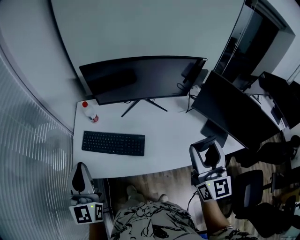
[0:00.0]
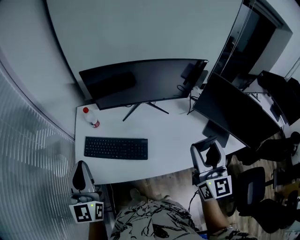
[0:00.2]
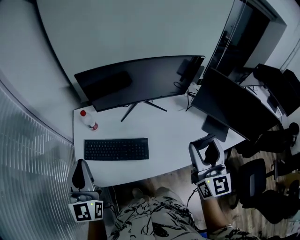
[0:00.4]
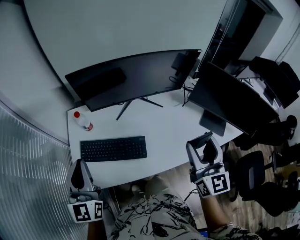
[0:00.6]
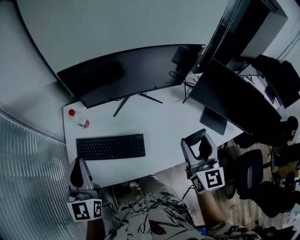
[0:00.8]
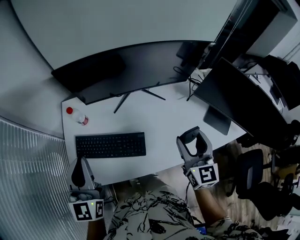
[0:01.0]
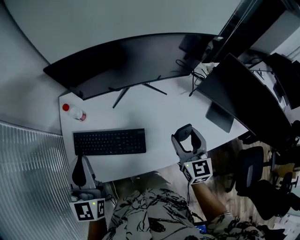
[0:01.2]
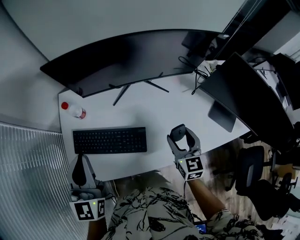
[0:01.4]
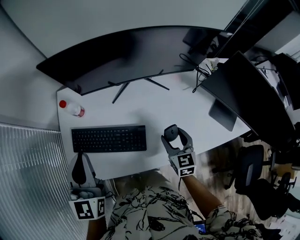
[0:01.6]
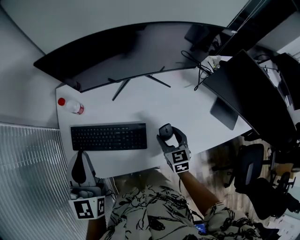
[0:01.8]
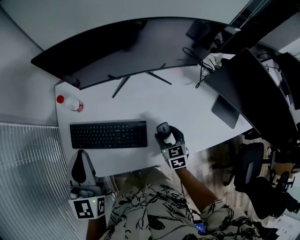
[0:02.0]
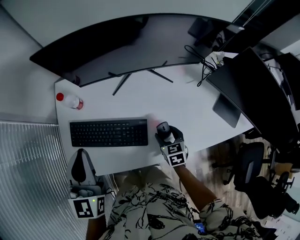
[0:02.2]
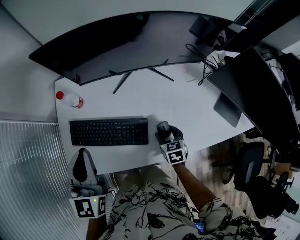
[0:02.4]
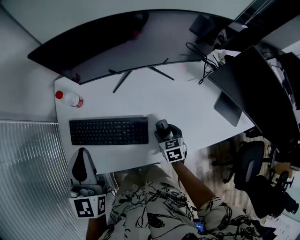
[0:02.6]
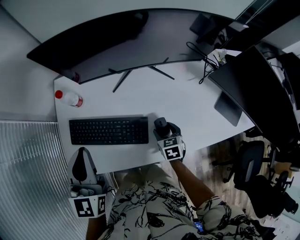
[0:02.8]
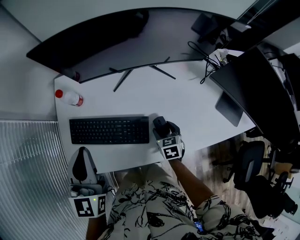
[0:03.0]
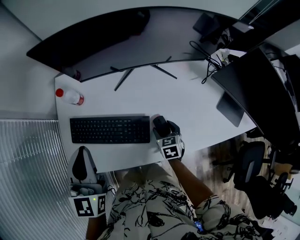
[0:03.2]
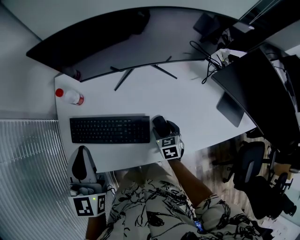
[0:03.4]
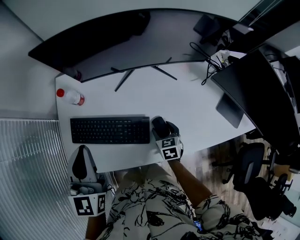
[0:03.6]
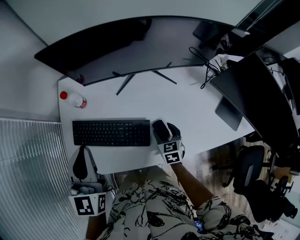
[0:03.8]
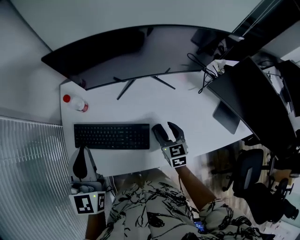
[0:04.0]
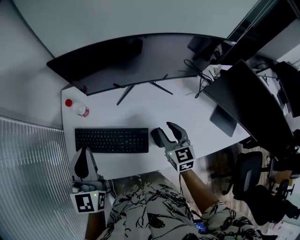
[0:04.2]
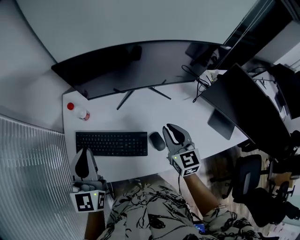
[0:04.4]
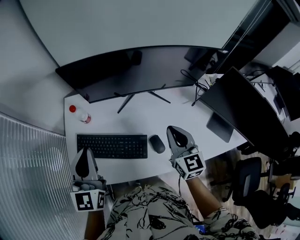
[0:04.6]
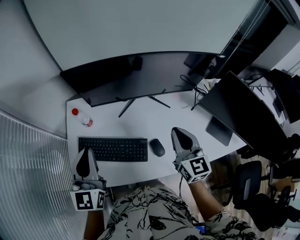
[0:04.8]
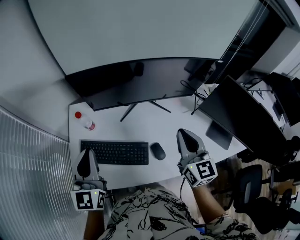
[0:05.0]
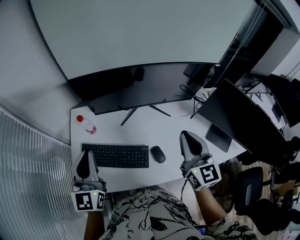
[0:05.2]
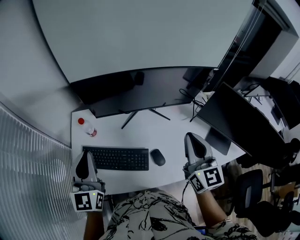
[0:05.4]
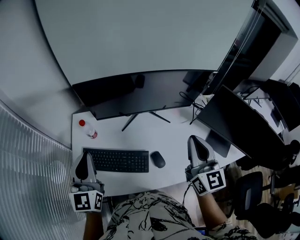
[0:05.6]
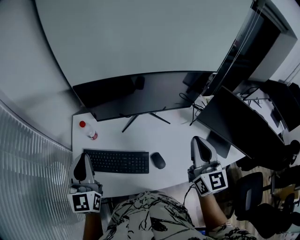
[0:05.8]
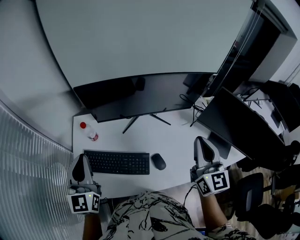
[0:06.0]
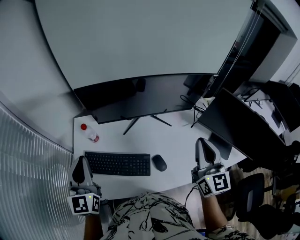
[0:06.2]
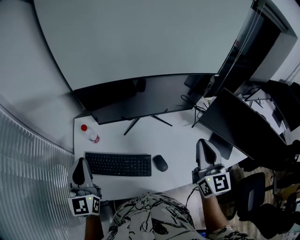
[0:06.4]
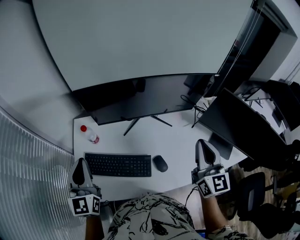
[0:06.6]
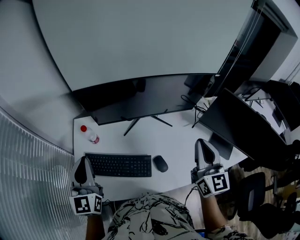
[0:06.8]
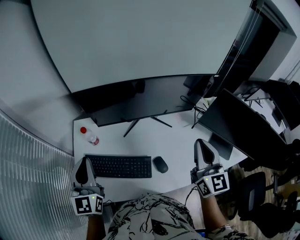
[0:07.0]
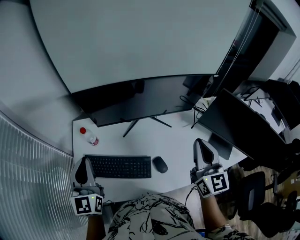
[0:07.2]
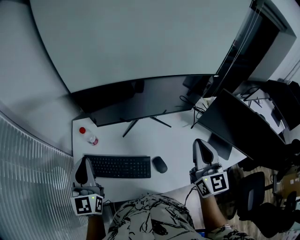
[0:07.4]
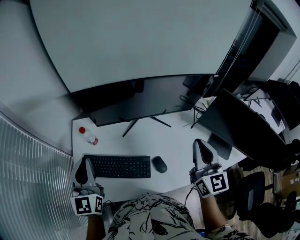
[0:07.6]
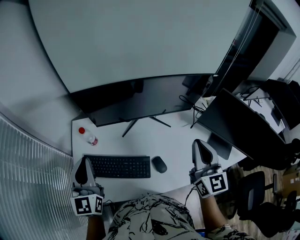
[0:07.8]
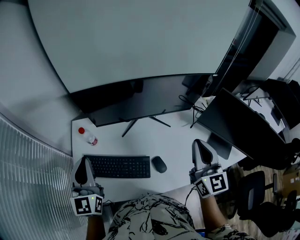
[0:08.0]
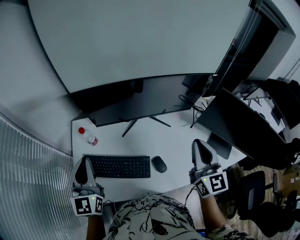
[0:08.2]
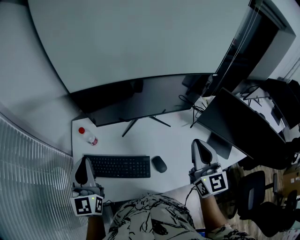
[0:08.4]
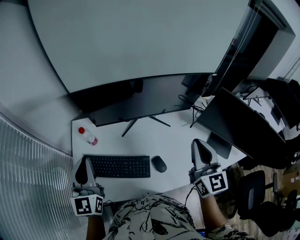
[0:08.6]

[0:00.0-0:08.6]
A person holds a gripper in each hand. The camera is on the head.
0:00.0 to 0:01.4: The right gripper shifts approximately 30 cm downward and forward, and tips its fingers downward by some 30 degrees. The left gripper shifts approximately 15 cm forward and downward.
0:01.4 to 0:02.8: The right gripper travels downward by approximately 20 cm, and swivels some 30 degrees.
0:02.8 to 0:04.4: The right gripper is displaced upward by about 20 cm, tilts its fingers some 30 degrees upward, and closes its fingers.
0:04.4 to 0:05.8: The left gripper ends up some 5 cm from where it was; the right gripper heads upward and to the right, covering about 20 cm, and rotates about 20 degrees.
0:05.8 to 0:07.2: The grippers stay close to where they were, moving slightly.
0:07.2 to 0:08.6: Neither gripper changes place.

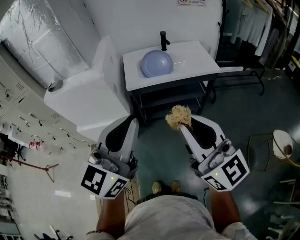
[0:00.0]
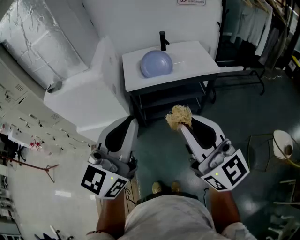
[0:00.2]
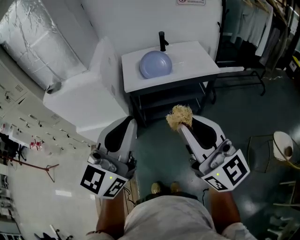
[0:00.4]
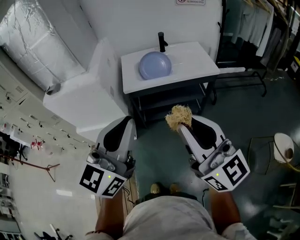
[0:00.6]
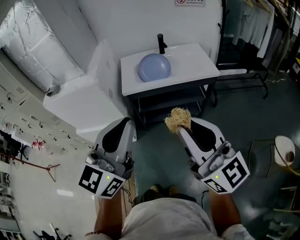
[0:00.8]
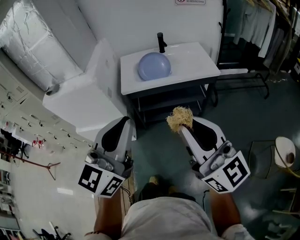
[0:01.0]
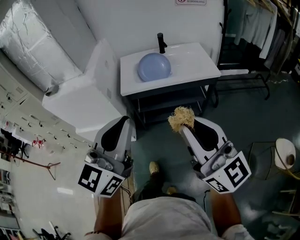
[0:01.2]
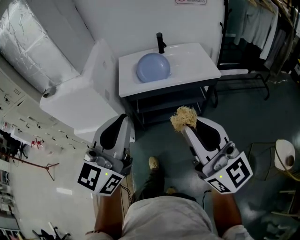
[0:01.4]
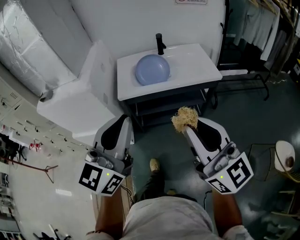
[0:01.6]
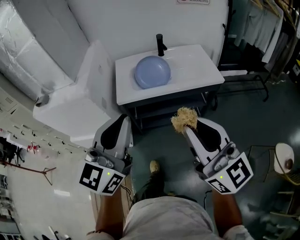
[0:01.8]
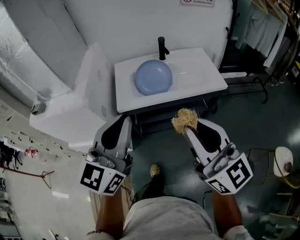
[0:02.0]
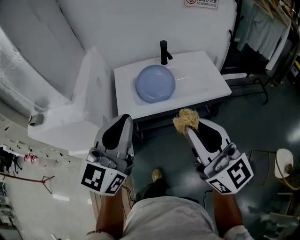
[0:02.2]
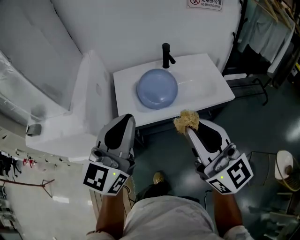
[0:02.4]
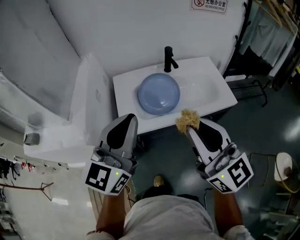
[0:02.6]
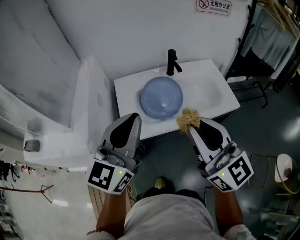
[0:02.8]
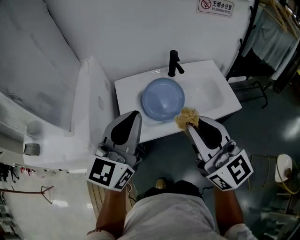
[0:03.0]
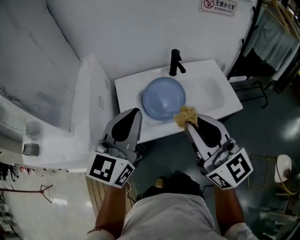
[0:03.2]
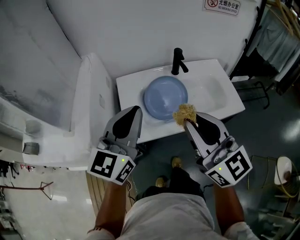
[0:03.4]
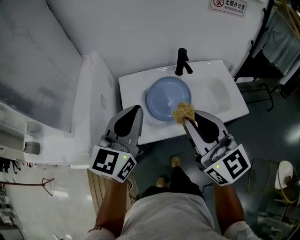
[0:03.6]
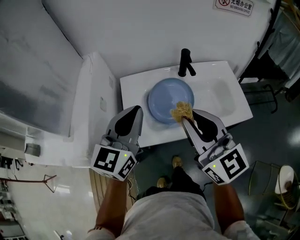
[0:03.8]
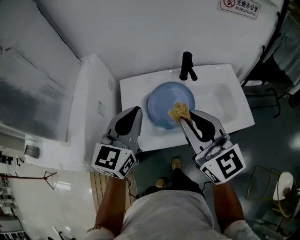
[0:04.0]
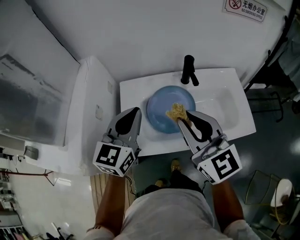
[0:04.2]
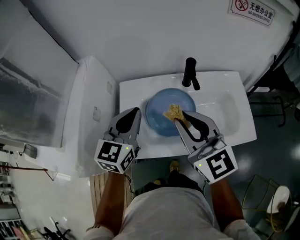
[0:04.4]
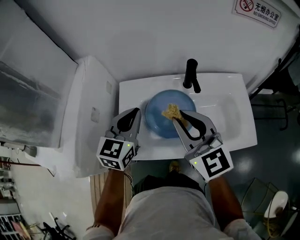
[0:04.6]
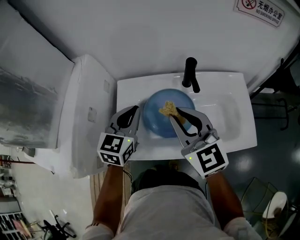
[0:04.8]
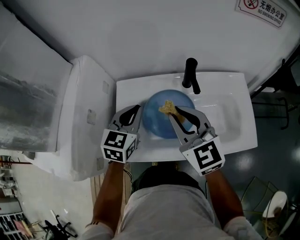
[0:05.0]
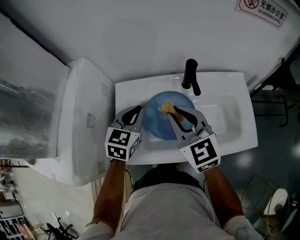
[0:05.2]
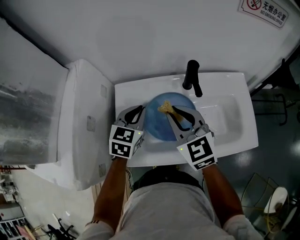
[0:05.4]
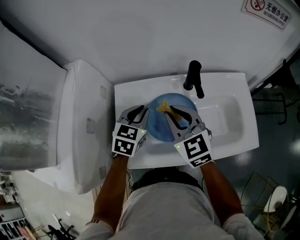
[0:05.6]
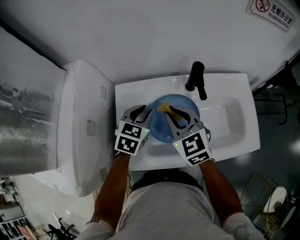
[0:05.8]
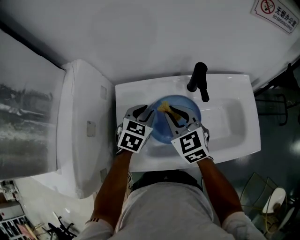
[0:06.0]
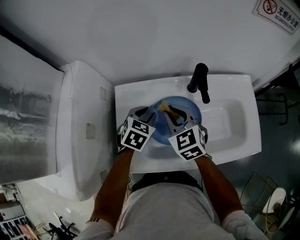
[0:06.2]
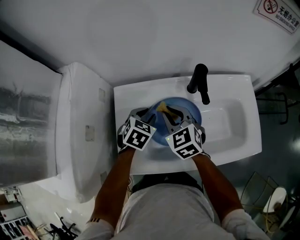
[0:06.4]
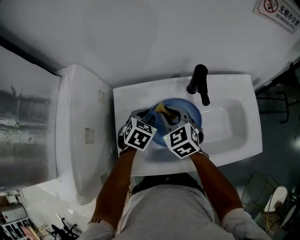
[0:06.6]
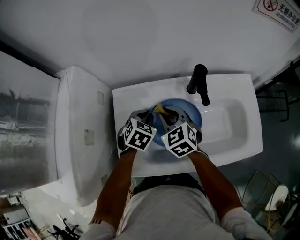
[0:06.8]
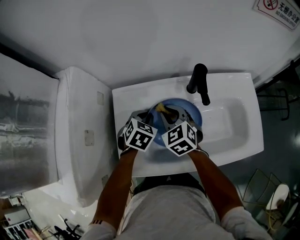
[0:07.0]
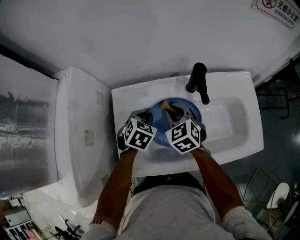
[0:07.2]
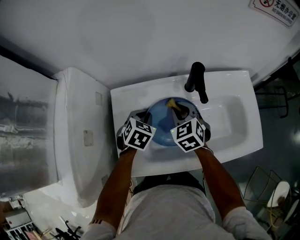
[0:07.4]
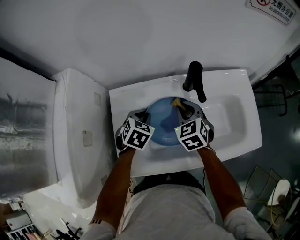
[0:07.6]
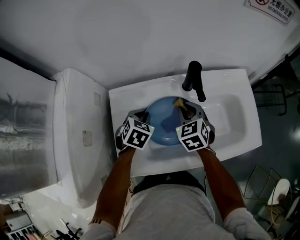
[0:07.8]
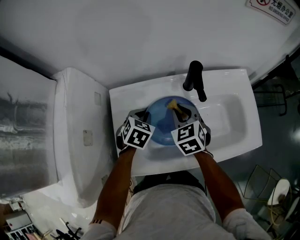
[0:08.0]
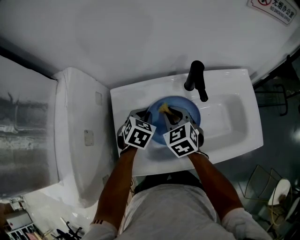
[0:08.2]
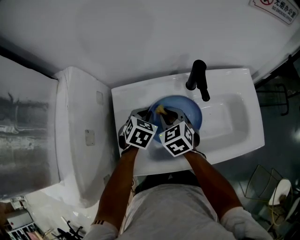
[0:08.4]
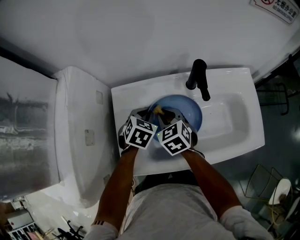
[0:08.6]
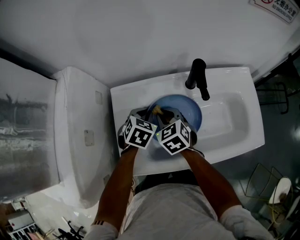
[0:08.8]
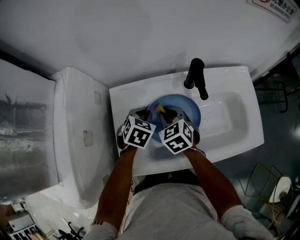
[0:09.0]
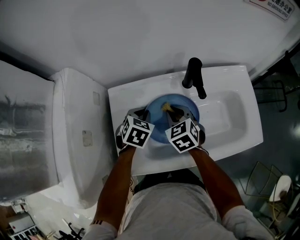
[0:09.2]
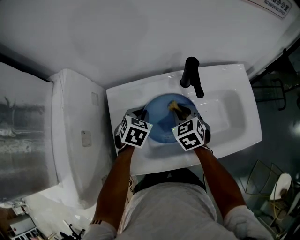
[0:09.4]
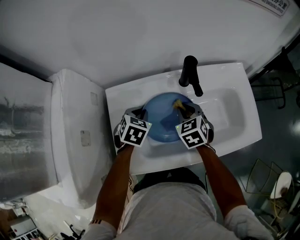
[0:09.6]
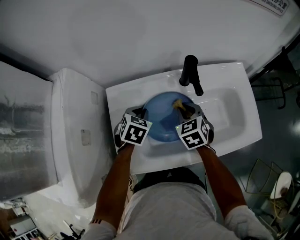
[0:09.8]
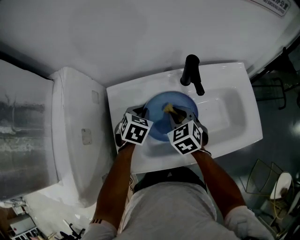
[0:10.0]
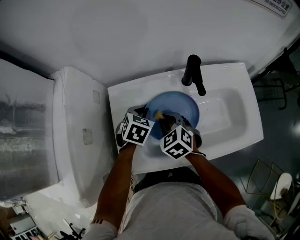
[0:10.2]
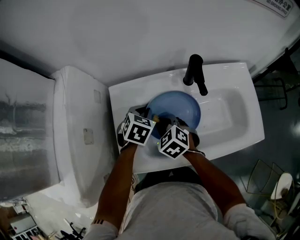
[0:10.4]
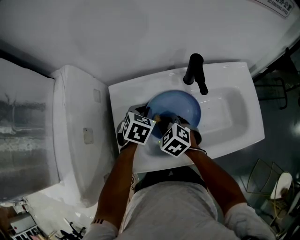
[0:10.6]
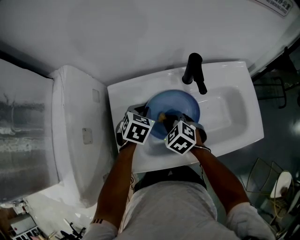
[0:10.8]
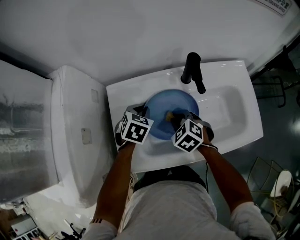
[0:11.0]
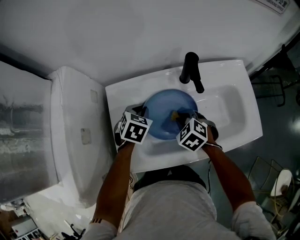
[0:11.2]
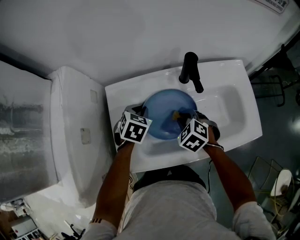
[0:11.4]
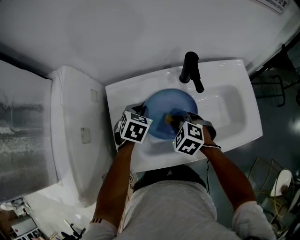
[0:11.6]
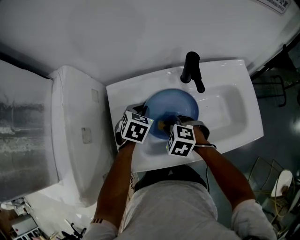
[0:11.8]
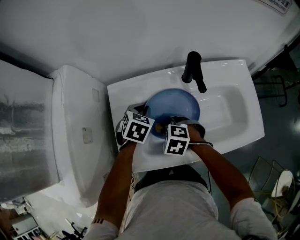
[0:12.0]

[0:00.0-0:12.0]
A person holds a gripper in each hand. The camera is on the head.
0:00.0 to 0:01.6: The left gripper is displaced forward and to the right by approximately 10 cm; the right gripper goes some 10 cm to the right and forward.
0:01.6 to 0:03.0: Both grippers move forward, some 30 cm.
0:03.0 to 0:04.4: The grippers both shift forward and downward by about 20 cm. The left gripper swivels about 20 degrees.
0:04.4 to 0:06.0: Both grippers travel together downward and forward, approximately 20 cm. The left gripper angles its fingers downward, by some 30 degrees, and opens up. The right gripper rotates about 20 degrees.
0:06.0 to 0:07.6: The right gripper is displaced downward and to the right by some 10 cm. Meanwhile the left gripper travels downward by approximately 5 cm.
0:07.6 to 0:09.0: The right gripper heads to the left, covering approximately 5 cm.
0:09.0 to 0:10.4: The right gripper travels backward by about 5 cm, and reaches some 10 cm to the right, then returns.
0:10.4 to 0:12.0: The right gripper goes to the right and returns, about 10 cm each way, and changes its angle by roughly 30 degrees.

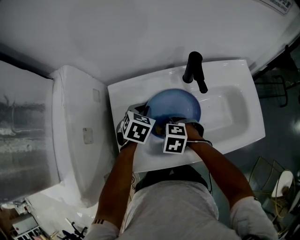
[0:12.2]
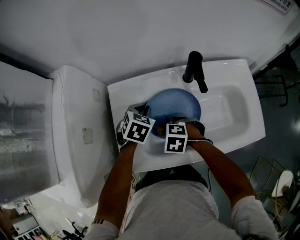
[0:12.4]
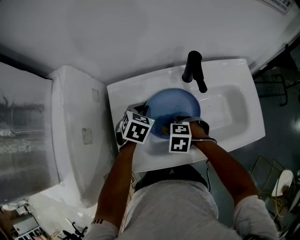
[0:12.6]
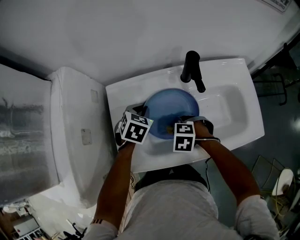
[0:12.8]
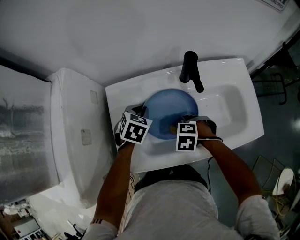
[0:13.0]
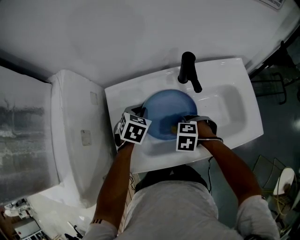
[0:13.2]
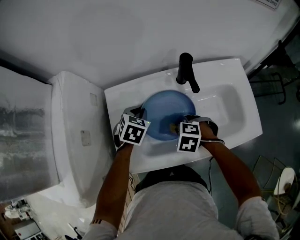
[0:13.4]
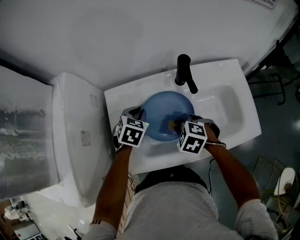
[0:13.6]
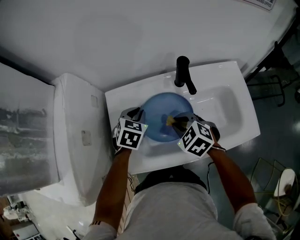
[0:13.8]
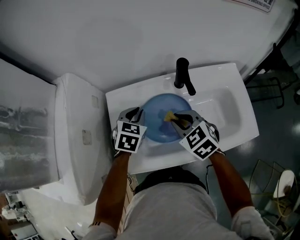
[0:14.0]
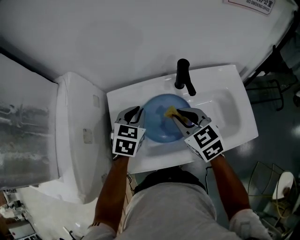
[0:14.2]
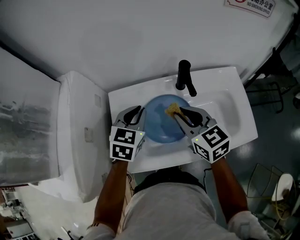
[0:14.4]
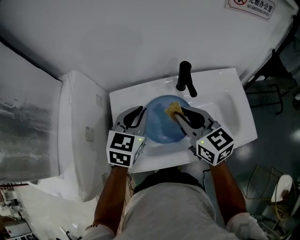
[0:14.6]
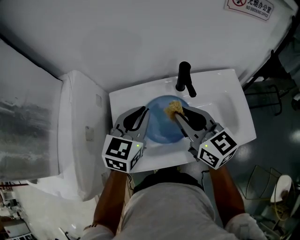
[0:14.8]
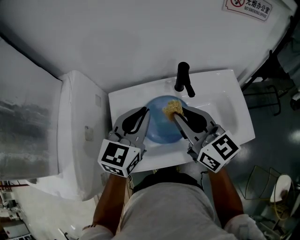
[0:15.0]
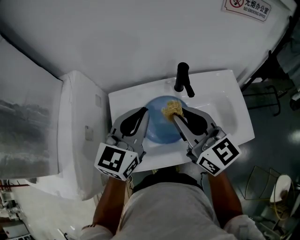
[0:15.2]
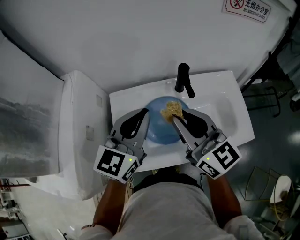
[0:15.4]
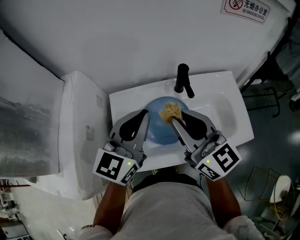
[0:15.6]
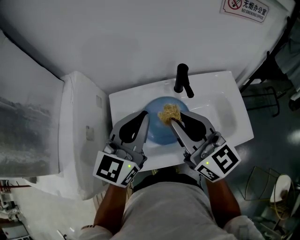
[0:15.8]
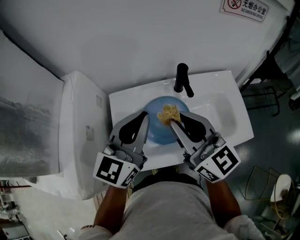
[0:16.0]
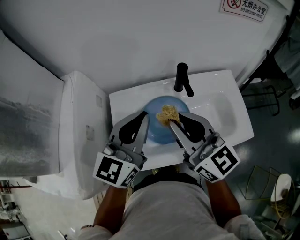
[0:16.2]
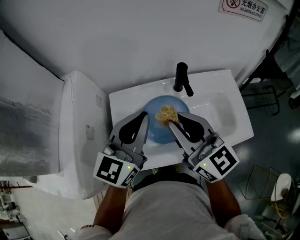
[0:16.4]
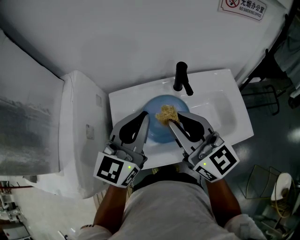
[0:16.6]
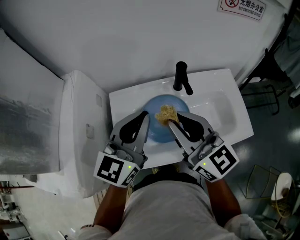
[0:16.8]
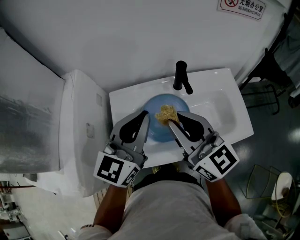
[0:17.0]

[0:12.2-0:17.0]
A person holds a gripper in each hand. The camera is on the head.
0:12.2 to 0:13.8: The right gripper shifts by roughly 10 cm, and changes its angle by approximately 30 degrees.
0:13.8 to 0:15.4: Both grippers travel together upward, approximately 25 cm. The left gripper angles its fingers upward, by roughly 50 degrees, while the right gripper angles its fingers upward, by roughly 50 degrees.
0:15.4 to 0:17.0: The grippers make only small movements.
